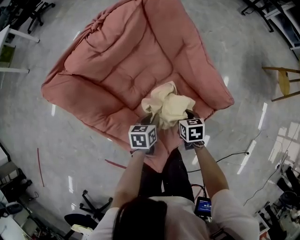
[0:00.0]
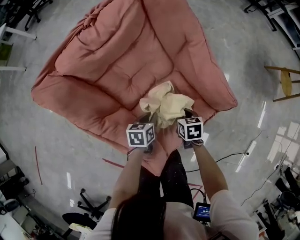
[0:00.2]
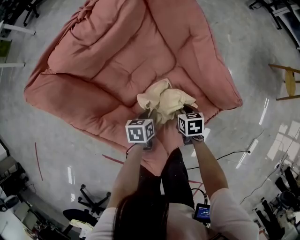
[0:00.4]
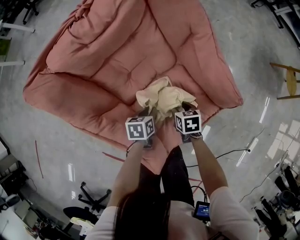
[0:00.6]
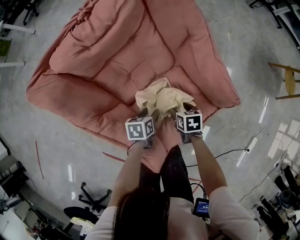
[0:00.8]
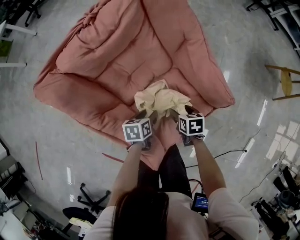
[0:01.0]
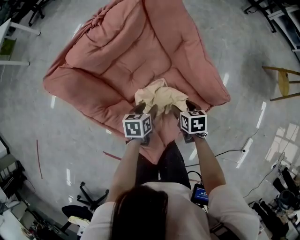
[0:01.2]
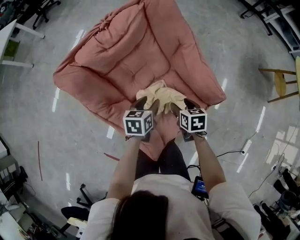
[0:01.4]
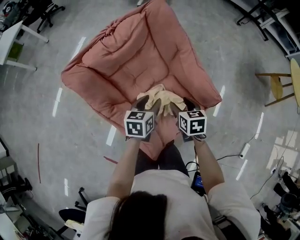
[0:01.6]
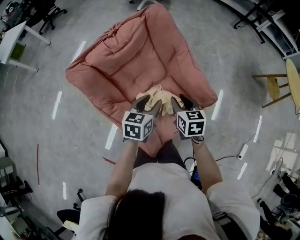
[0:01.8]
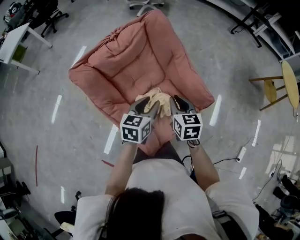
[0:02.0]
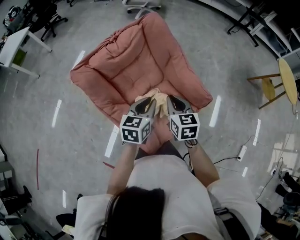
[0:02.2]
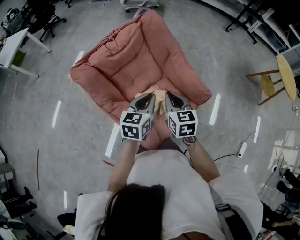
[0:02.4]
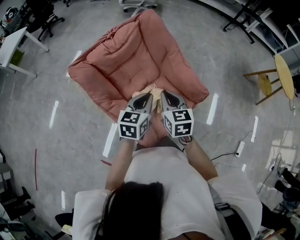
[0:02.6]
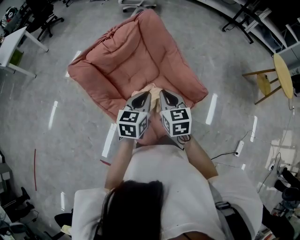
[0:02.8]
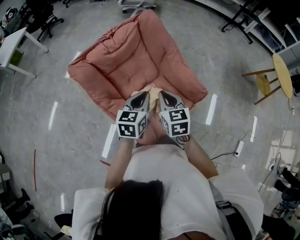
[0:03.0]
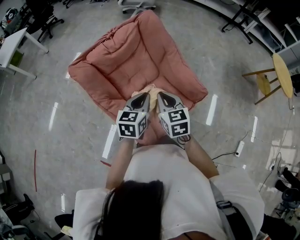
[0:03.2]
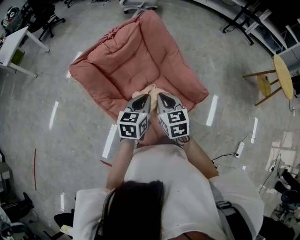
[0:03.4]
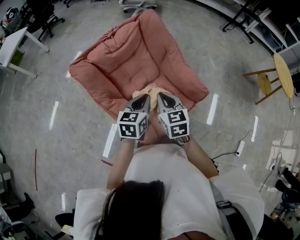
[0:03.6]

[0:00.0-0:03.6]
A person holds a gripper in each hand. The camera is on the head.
0:00.0 to 0:01.8: Both grippers move upward, roughly 20 cm. The right gripper swivels roughly 20 degrees, and opens its fingers. Meanwhile the left gripper changes its angle by roughly 20 degrees, and opens its fingers.
0:01.8 to 0:03.6: The left gripper is displaced upward and backward by about 10 cm, and closes its fingers, while the right gripper shifts roughly 10 cm upward, backward and to the left, and closes up.

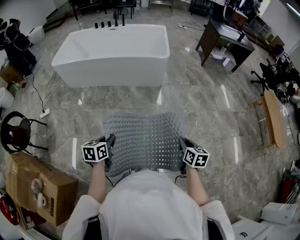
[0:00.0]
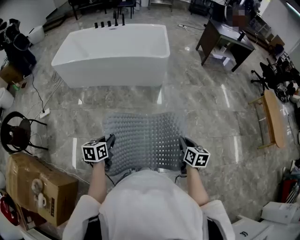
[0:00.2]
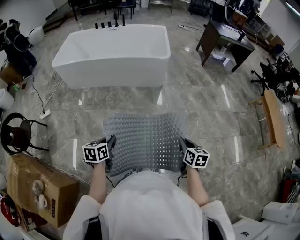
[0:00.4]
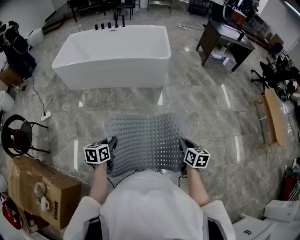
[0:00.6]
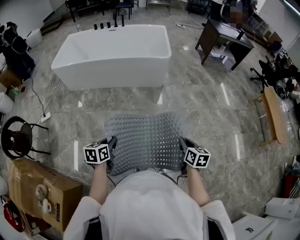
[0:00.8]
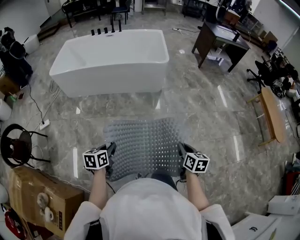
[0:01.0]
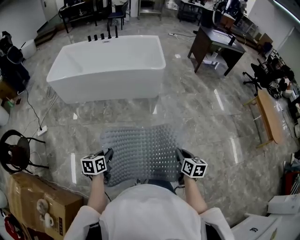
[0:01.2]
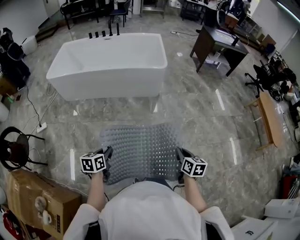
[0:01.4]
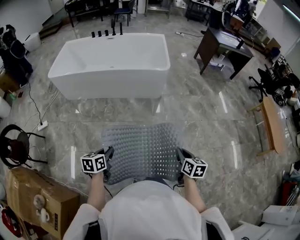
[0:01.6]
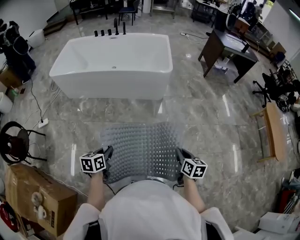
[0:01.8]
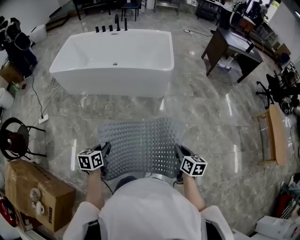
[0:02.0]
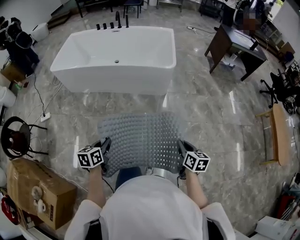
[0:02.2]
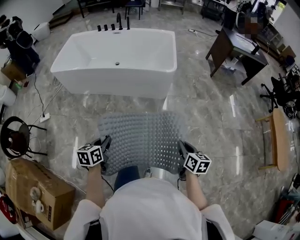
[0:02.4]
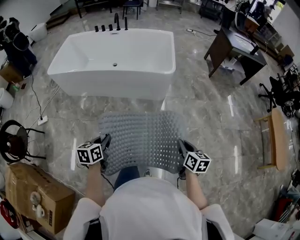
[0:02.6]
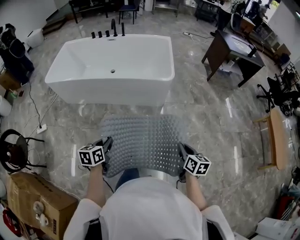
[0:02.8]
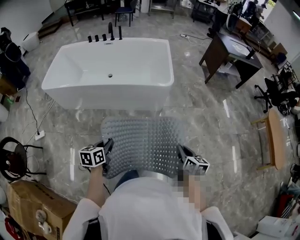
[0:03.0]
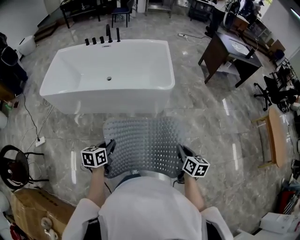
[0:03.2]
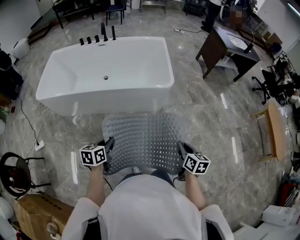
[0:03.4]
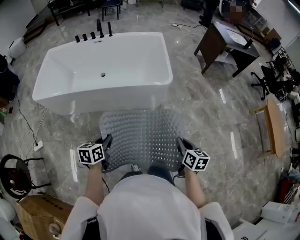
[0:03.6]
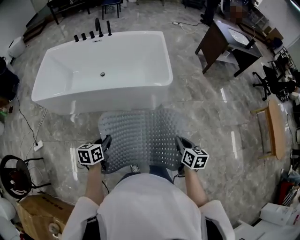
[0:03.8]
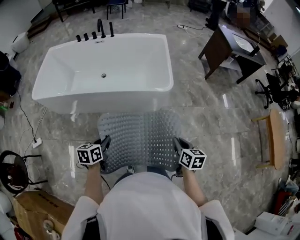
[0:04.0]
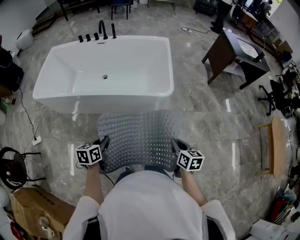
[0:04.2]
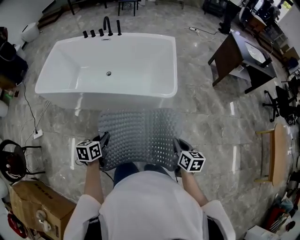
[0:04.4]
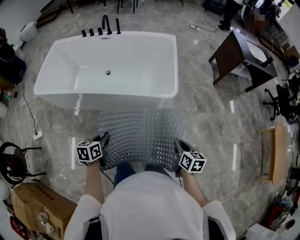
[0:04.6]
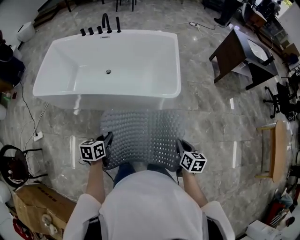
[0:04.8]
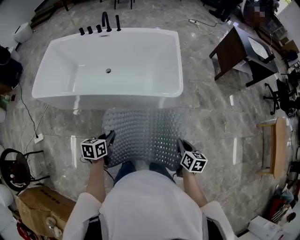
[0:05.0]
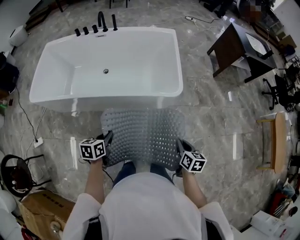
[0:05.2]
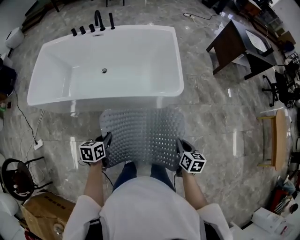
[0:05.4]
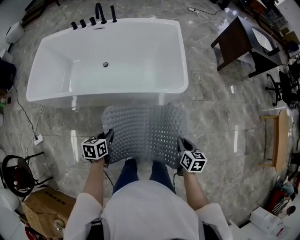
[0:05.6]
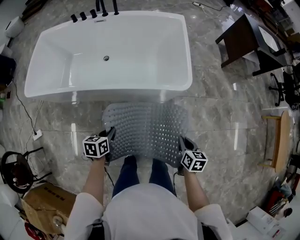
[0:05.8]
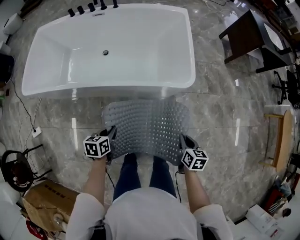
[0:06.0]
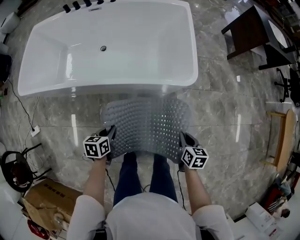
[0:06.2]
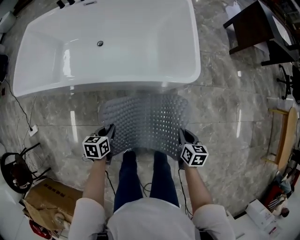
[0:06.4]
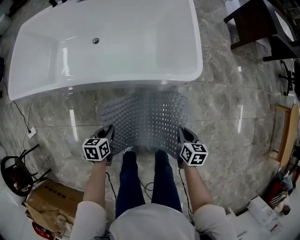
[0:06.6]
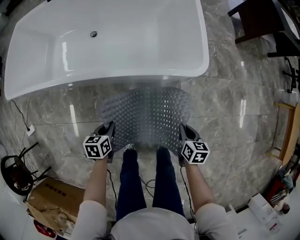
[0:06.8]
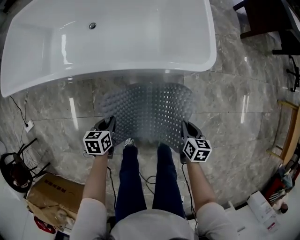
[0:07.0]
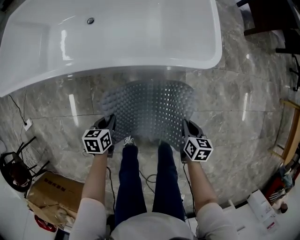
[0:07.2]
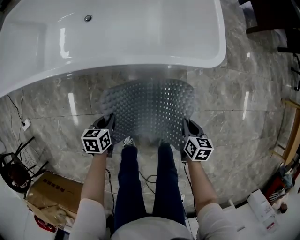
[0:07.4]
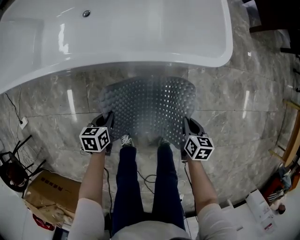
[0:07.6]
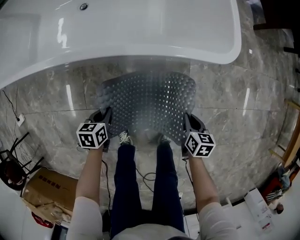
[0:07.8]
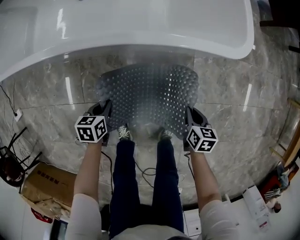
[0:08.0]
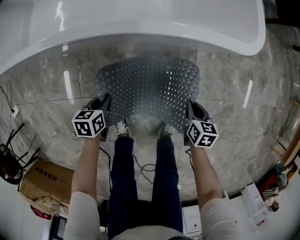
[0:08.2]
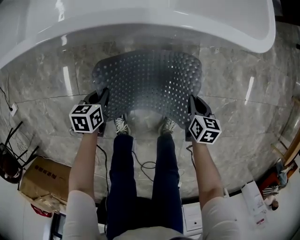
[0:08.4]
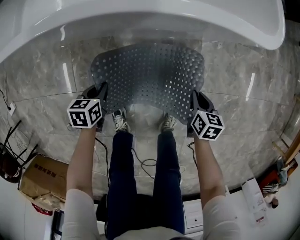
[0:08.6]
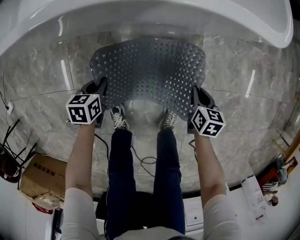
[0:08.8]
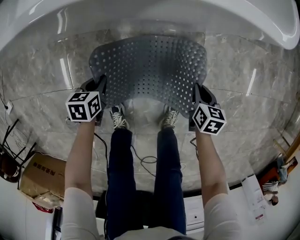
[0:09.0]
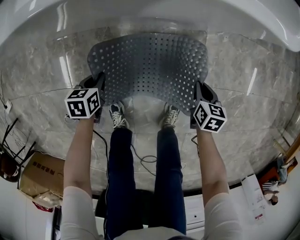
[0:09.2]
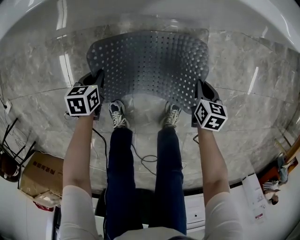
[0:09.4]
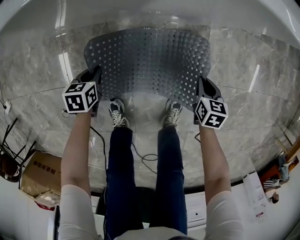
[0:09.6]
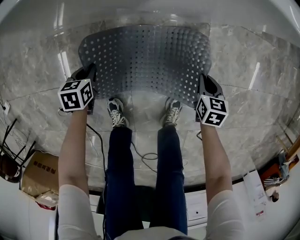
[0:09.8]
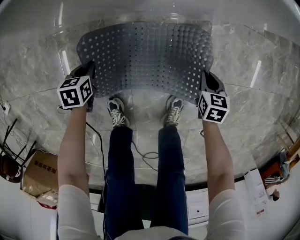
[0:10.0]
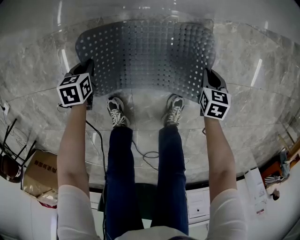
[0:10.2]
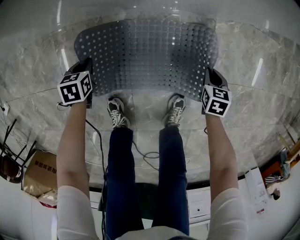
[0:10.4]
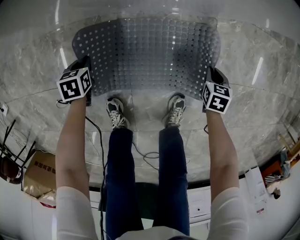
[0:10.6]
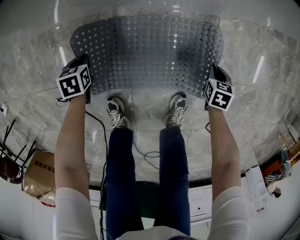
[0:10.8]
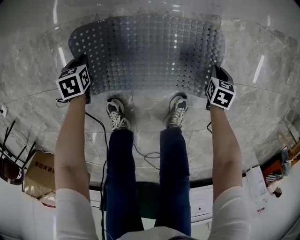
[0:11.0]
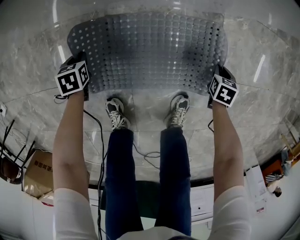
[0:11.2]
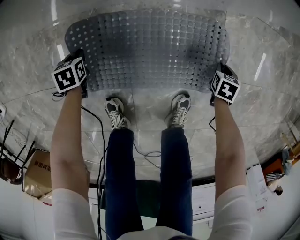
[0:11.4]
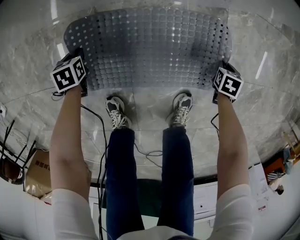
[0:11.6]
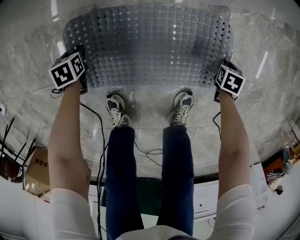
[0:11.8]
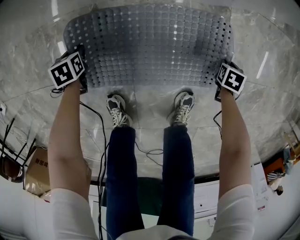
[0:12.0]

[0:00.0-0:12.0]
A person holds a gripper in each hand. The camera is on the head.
0:00.0 to 0:01.6: The two grippers go roughly 5 cm forward.
0:01.6 to 0:03.0: Both grippers move forward, some 25 cm.
0:03.0 to 0:04.4: The two grippers go approximately 20 cm forward.
0:04.4 to 0:06.0: The left gripper moves downward, forward and to the left, approximately 20 cm, while the right gripper is displaced downward, to the left and forward by some 15 cm.
0:06.0 to 0:07.6: Both grippers move downward, roughly 30 cm.
0:07.6 to 0:09.0: Both grippers move downward, approximately 20 cm.
0:09.0 to 0:10.4: The left gripper moves downward and to the left, approximately 10 cm. The right gripper is displaced downward by approximately 10 cm.
0:10.4 to 0:12.0: The grippers both shift downward by about 10 cm. The left gripper opens its fingers, while the right gripper changes its angle by approximately 20 degrees.

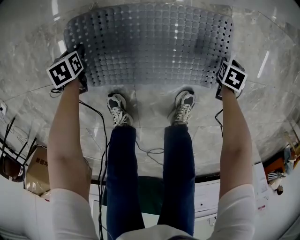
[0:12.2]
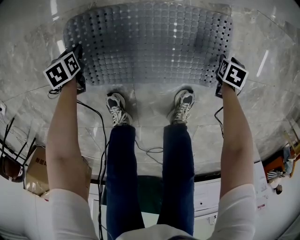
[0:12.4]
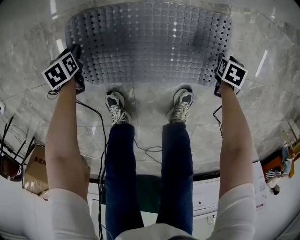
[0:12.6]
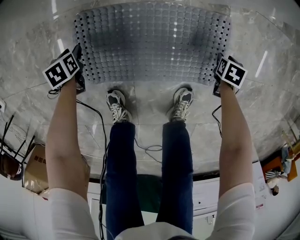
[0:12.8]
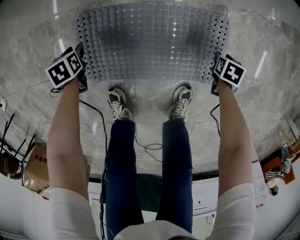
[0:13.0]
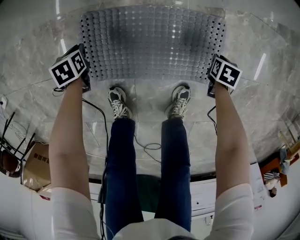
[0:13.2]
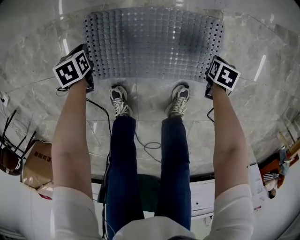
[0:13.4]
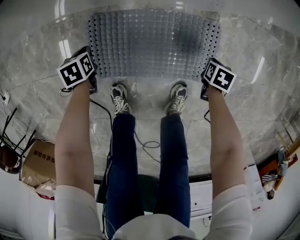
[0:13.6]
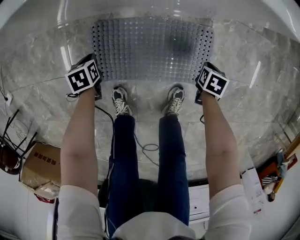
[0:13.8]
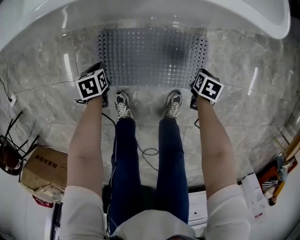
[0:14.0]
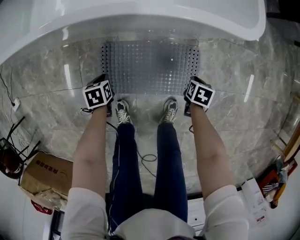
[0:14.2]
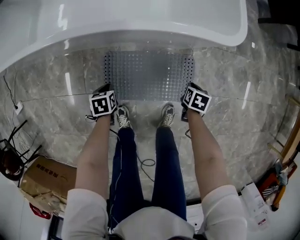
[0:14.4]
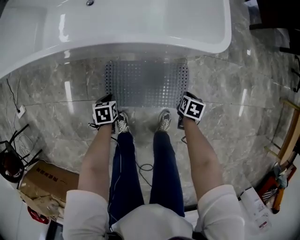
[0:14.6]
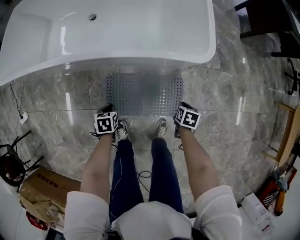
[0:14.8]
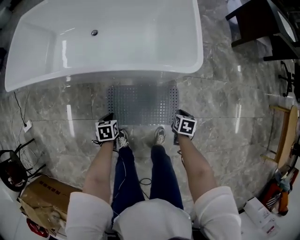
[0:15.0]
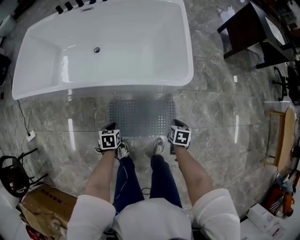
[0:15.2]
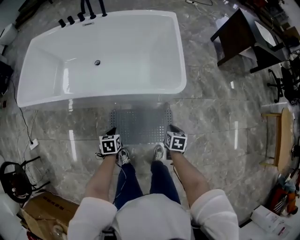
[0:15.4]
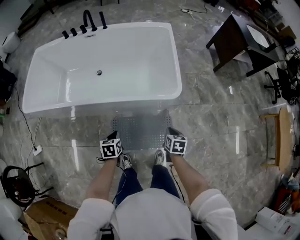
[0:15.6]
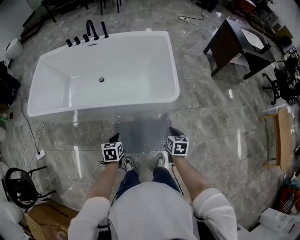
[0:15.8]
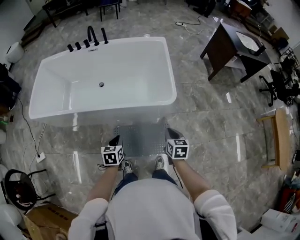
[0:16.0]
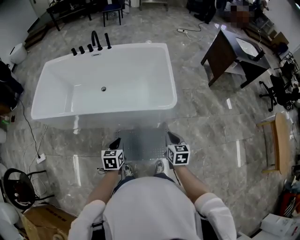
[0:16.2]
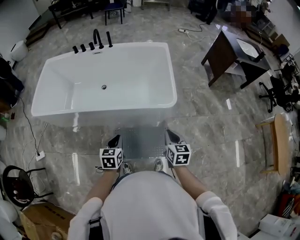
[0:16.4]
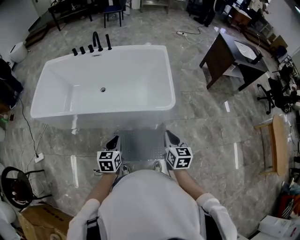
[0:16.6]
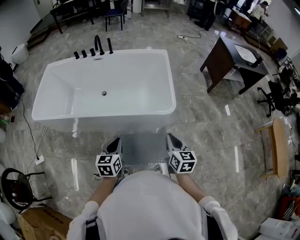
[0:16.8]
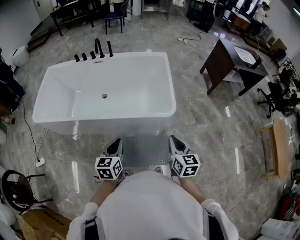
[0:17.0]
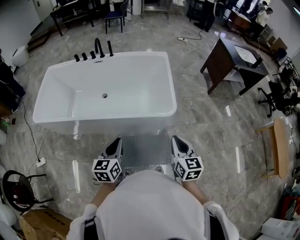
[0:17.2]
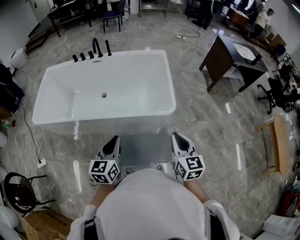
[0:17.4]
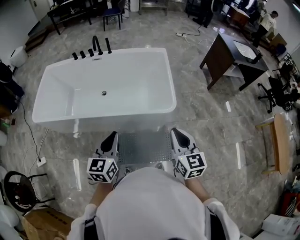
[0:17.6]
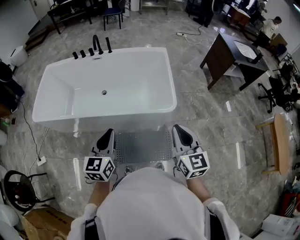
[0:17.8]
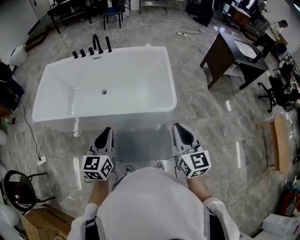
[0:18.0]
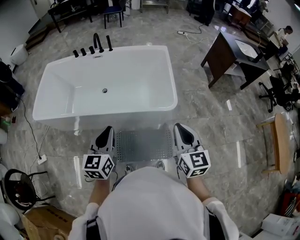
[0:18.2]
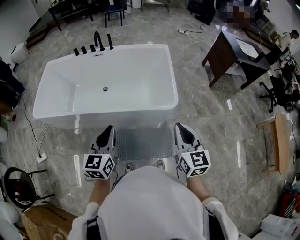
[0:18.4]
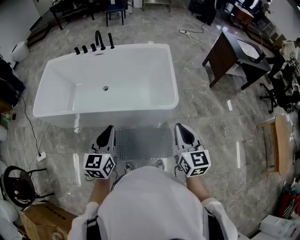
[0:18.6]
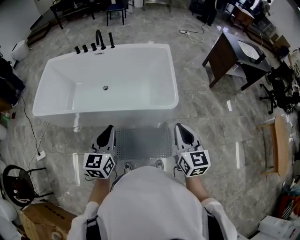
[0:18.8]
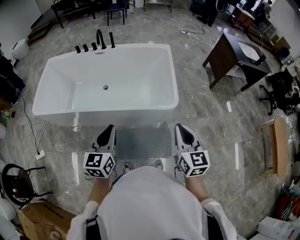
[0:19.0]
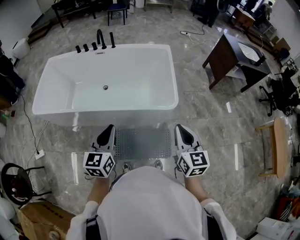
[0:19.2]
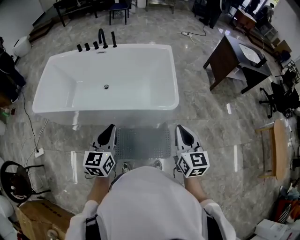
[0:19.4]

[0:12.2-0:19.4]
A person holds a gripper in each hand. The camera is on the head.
0:12.2 to 0:13.6: Both grippers travel together upward, about 10 cm. The left gripper closes; the right gripper closes.
0:13.6 to 0:15.0: The two grippers go roughly 35 cm upward.
0:15.0 to 0:16.6: The two grippers go some 35 cm upward. The left gripper points its fingers roughly 30 degrees further upward. The right gripper tips its fingers upward by about 40 degrees.
0:16.6 to 0:18.0: Both grippers travel together upward, roughly 15 cm. The right gripper swivels roughly 20 degrees. The left gripper rotates some 20 degrees.
0:18.0 to 0:19.4: There are only small adjustments of the grippers.

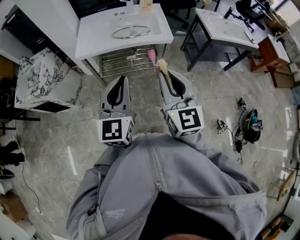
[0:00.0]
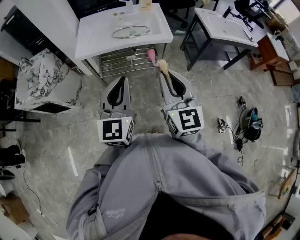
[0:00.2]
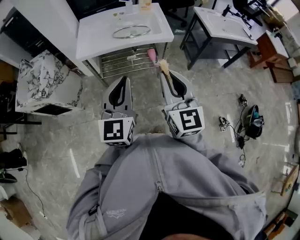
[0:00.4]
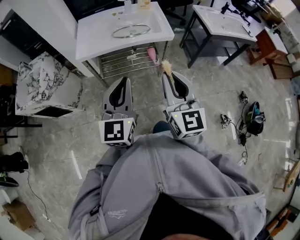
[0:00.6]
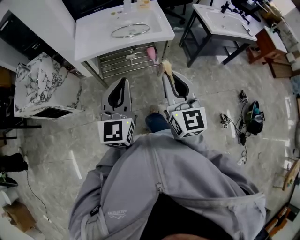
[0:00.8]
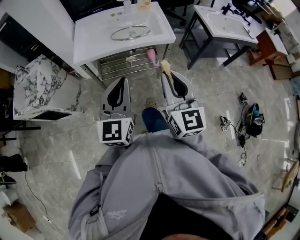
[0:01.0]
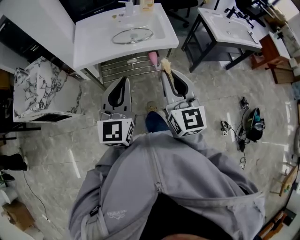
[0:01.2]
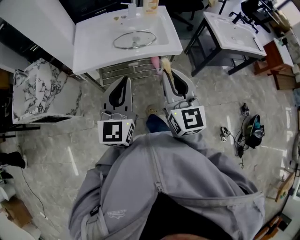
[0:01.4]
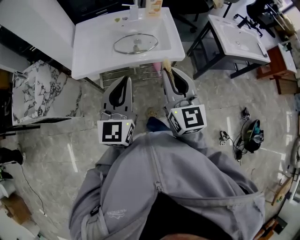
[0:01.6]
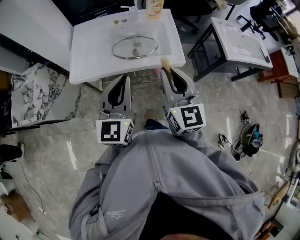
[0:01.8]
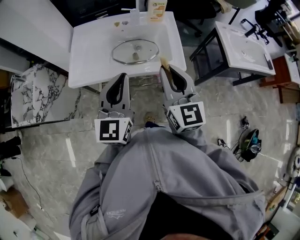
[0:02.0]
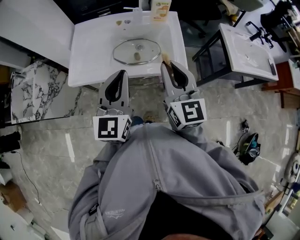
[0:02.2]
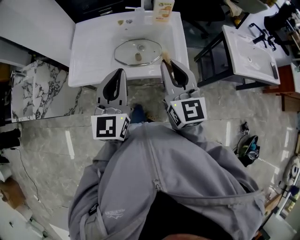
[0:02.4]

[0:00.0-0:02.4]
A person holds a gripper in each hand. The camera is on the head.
0:00.0 to 0:01.2: Both grippers move forward, roughly 10 cm.
0:01.2 to 0:02.4: The grippers both shift forward by about 25 cm.
